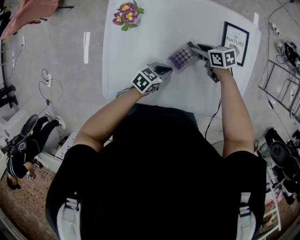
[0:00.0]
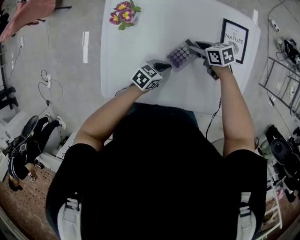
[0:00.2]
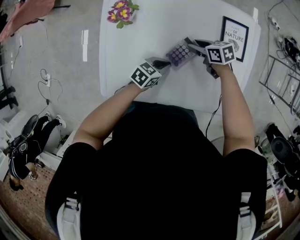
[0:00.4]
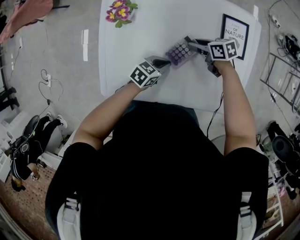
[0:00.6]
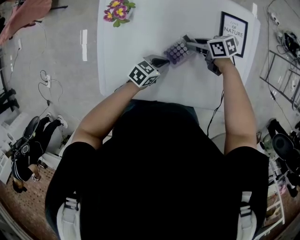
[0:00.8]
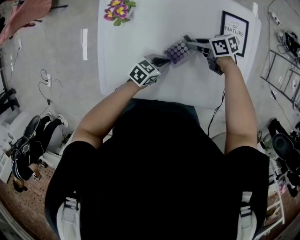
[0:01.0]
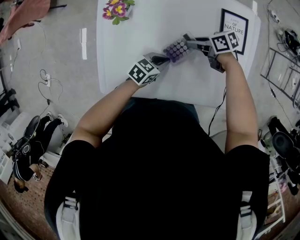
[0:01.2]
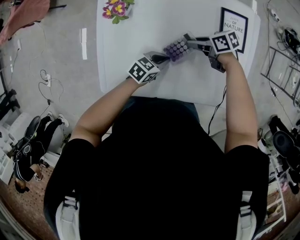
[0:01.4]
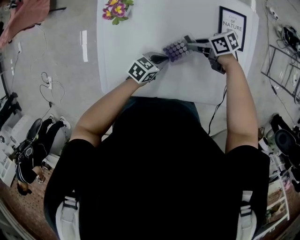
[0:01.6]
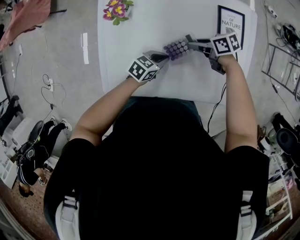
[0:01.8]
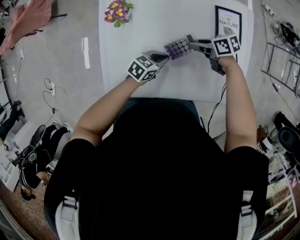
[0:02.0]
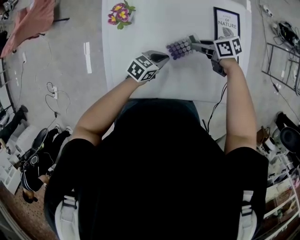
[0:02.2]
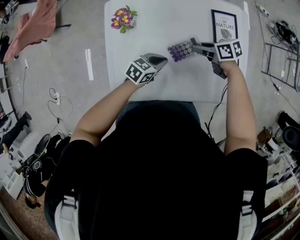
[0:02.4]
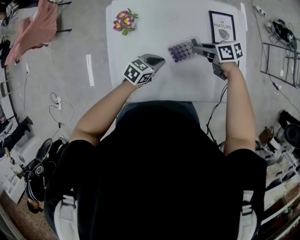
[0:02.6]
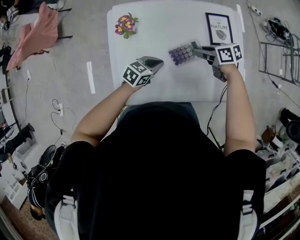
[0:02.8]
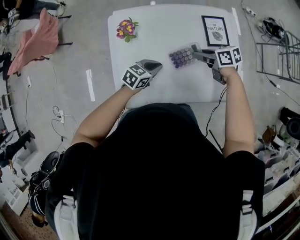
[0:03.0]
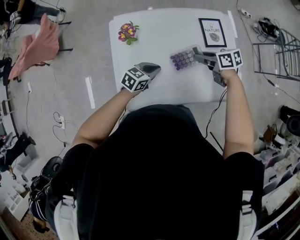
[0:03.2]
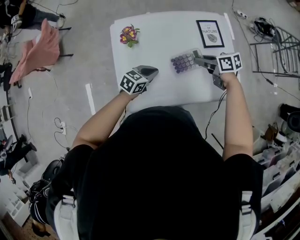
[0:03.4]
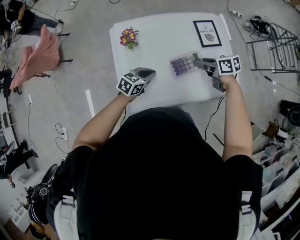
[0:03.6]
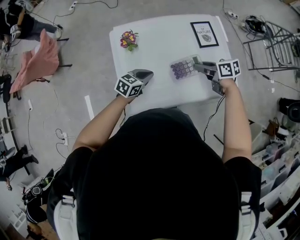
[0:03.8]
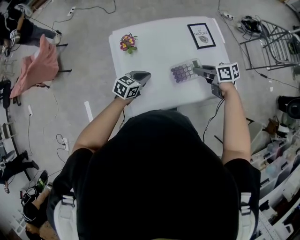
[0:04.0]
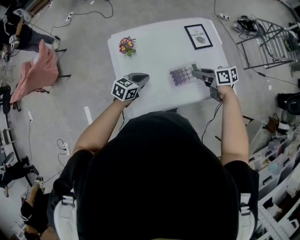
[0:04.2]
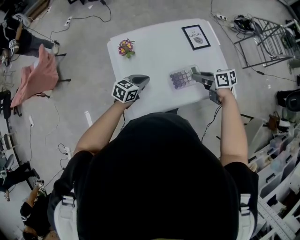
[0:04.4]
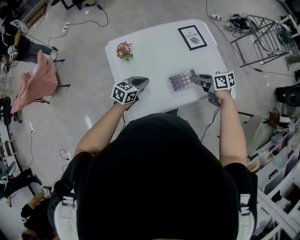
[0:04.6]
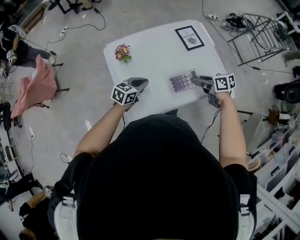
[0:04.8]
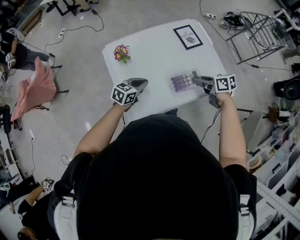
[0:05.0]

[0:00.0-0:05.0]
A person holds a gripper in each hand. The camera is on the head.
0:00.0 to 0:01.6: The right gripper ends up roughly 5 cm from where it was.
0:01.6 to 0:03.4: The grippers both shift upward by about 15 cm. The right gripper turns by roughly 30 degrees.
0:03.4 to 0:05.0: The right gripper changes place by about 15 cm. The left gripper shifts by some 10 cm.

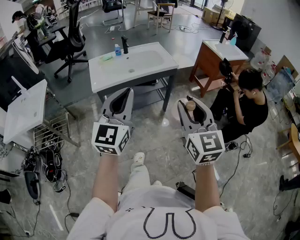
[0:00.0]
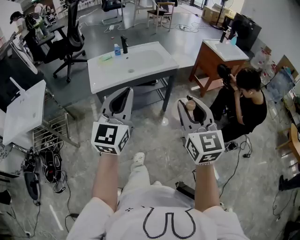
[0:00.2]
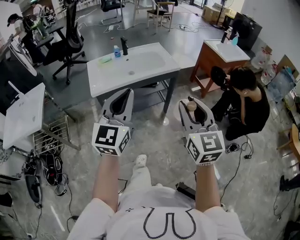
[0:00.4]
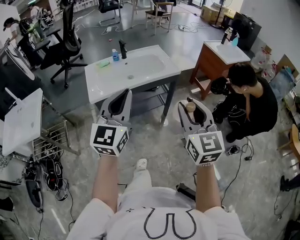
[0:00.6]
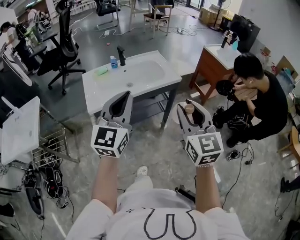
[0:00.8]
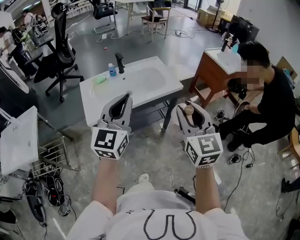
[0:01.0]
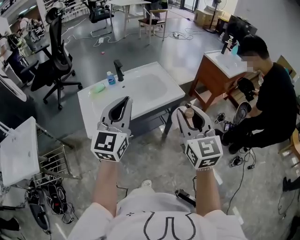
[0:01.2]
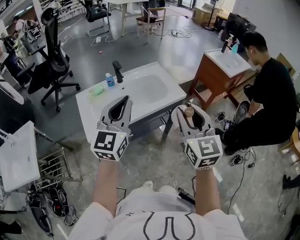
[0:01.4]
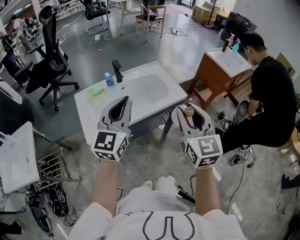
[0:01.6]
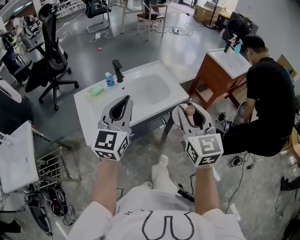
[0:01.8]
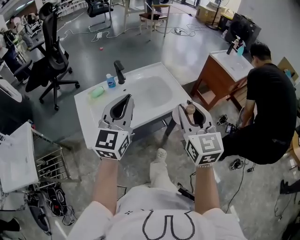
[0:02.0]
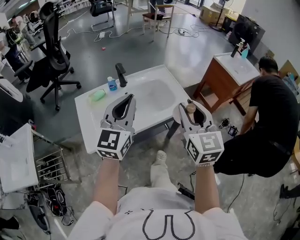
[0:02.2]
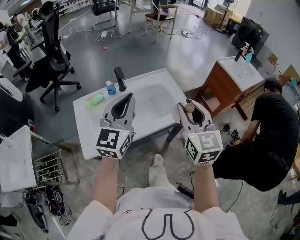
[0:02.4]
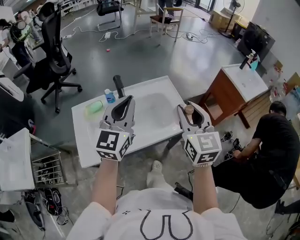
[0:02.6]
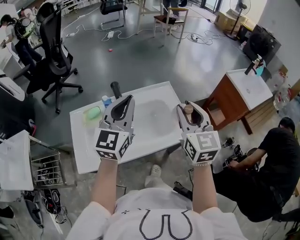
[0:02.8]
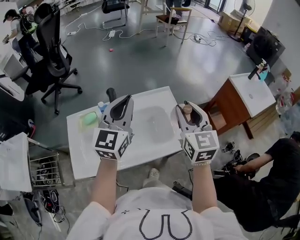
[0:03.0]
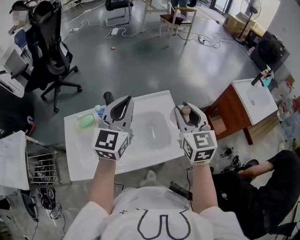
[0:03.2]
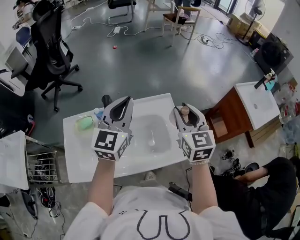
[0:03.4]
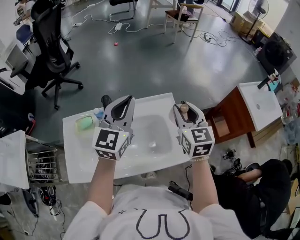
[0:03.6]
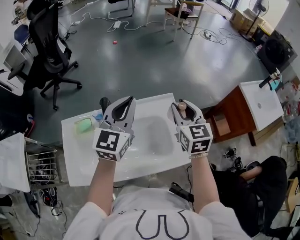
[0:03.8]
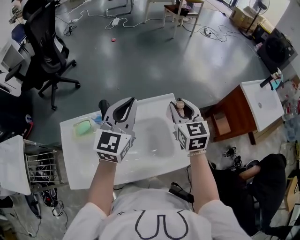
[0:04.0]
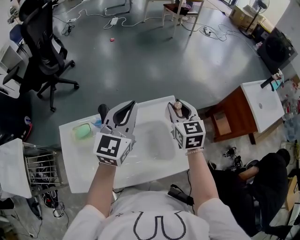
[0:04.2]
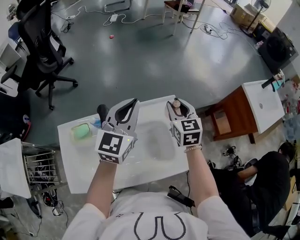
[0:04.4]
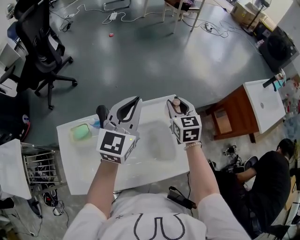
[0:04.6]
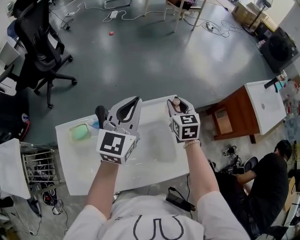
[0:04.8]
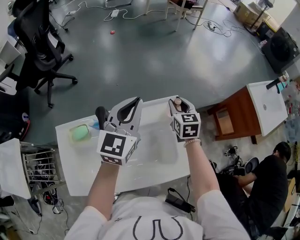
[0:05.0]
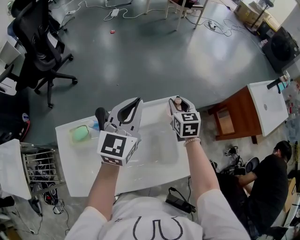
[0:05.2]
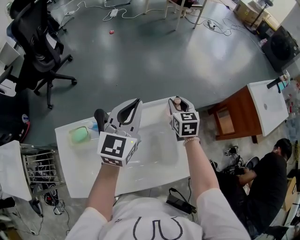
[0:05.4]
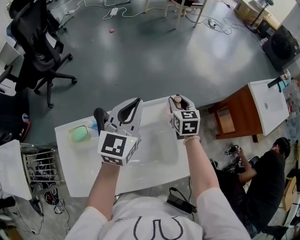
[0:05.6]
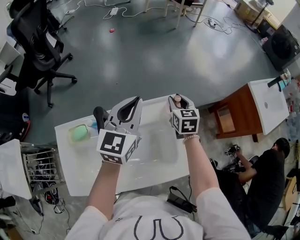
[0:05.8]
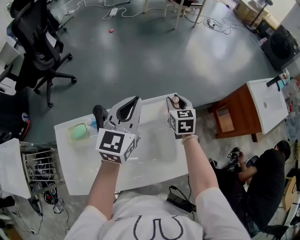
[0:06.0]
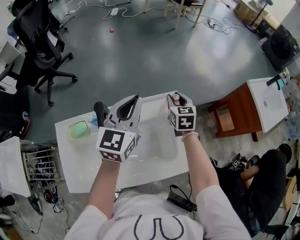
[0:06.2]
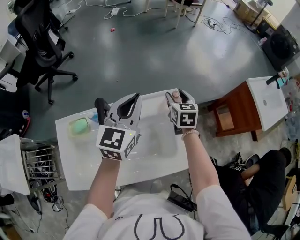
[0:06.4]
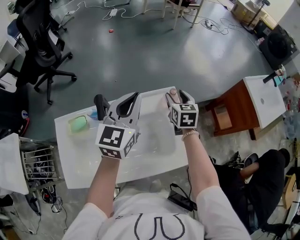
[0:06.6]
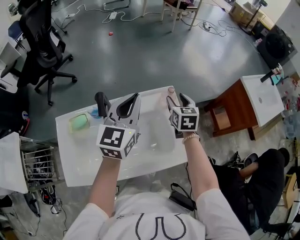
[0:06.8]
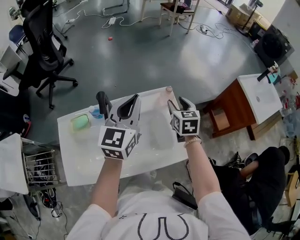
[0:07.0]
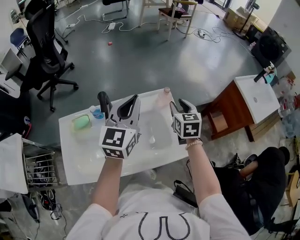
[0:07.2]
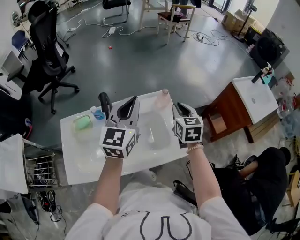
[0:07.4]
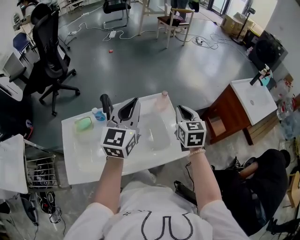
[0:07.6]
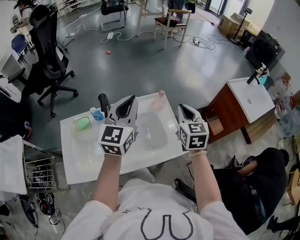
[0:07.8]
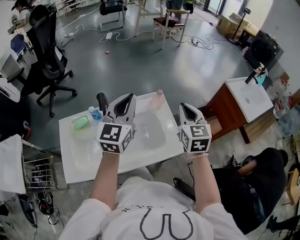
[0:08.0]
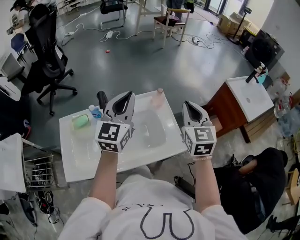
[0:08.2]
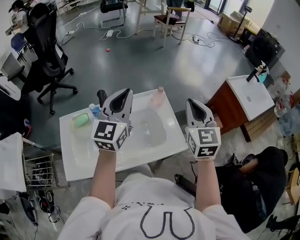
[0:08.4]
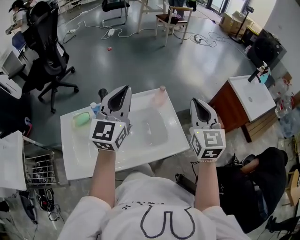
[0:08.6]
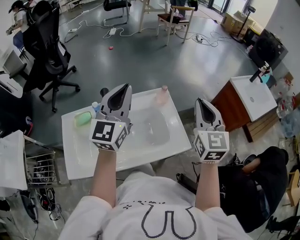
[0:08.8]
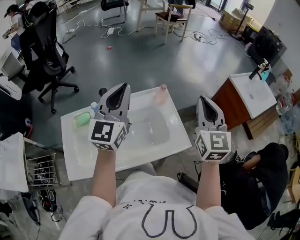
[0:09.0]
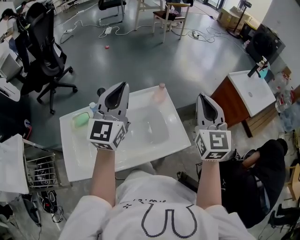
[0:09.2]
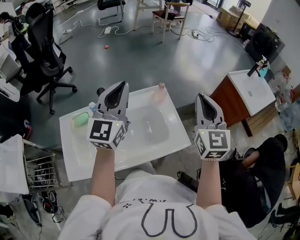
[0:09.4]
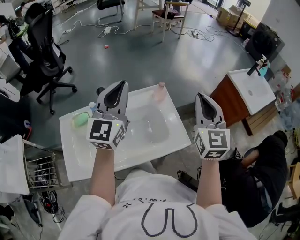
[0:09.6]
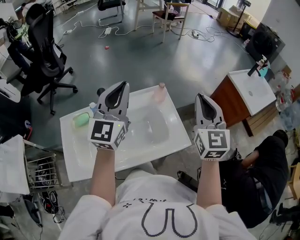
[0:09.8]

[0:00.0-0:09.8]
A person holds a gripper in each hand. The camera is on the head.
0:00.0 to 0:01.4: The two grippers go some 30 cm forward.
0:01.4 to 0:02.8: Both grippers travel together forward, some 30 cm.
0:02.8 to 0:04.2: The right gripper shifts approximately 30 cm forward and downward. Meanwhile the left gripper is displaced forward by about 20 cm.
0:04.2 to 0:05.6: The right gripper goes some 15 cm downward and forward. The left gripper heads forward, covering some 5 cm.
0:05.6 to 0:07.0: The grippers both shift backward by about 10 cm.
0:07.0 to 0:08.4: The right gripper travels upward and backward by about 20 cm, turns by roughly 30 degrees, and closes up; the left gripper heads upward and backward, covering about 10 cm.
0:08.4 to 0:09.8: The grippers make only small movements.

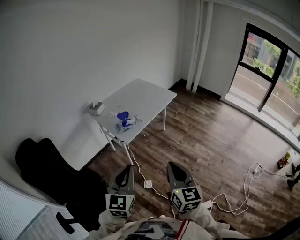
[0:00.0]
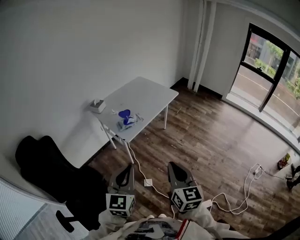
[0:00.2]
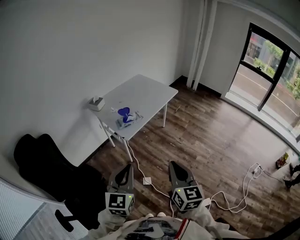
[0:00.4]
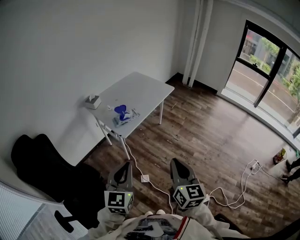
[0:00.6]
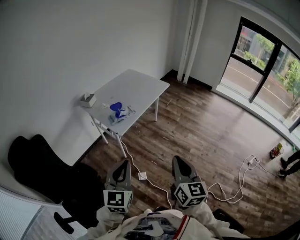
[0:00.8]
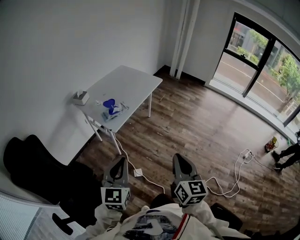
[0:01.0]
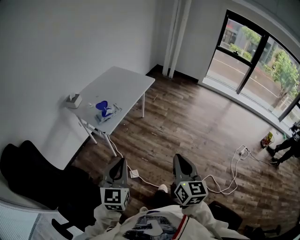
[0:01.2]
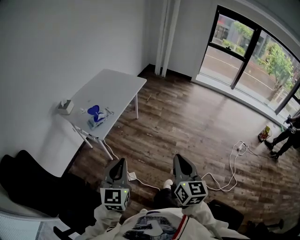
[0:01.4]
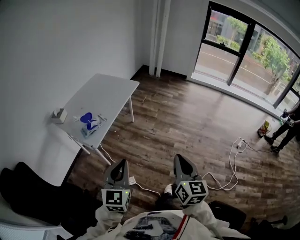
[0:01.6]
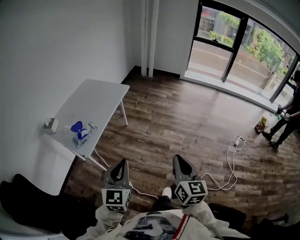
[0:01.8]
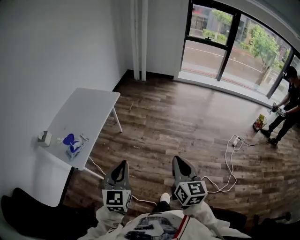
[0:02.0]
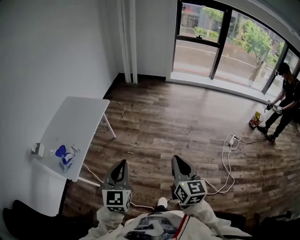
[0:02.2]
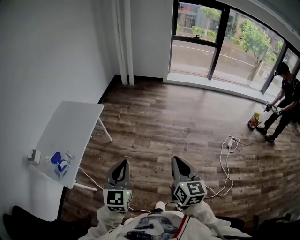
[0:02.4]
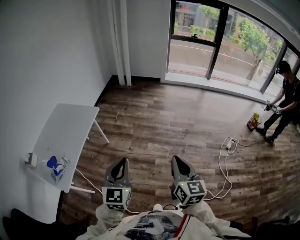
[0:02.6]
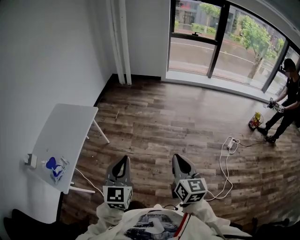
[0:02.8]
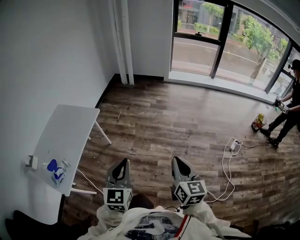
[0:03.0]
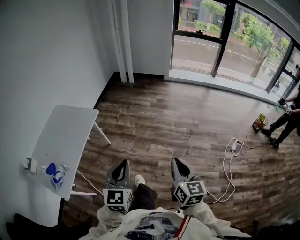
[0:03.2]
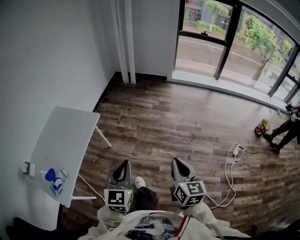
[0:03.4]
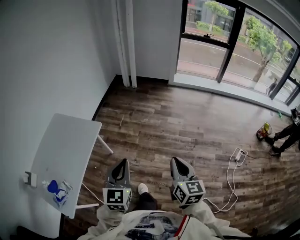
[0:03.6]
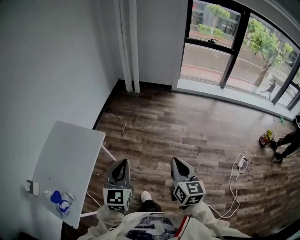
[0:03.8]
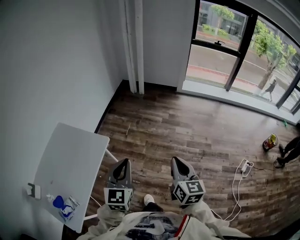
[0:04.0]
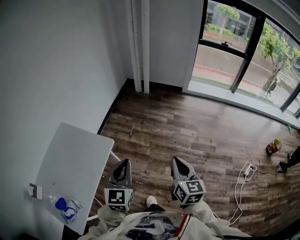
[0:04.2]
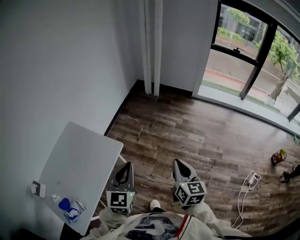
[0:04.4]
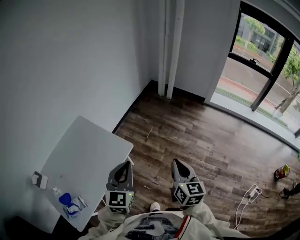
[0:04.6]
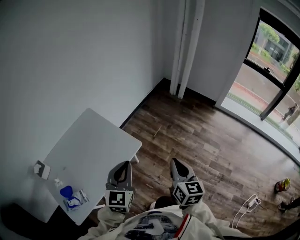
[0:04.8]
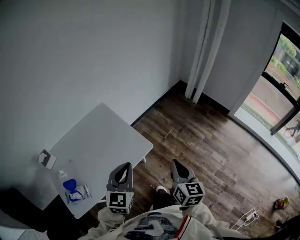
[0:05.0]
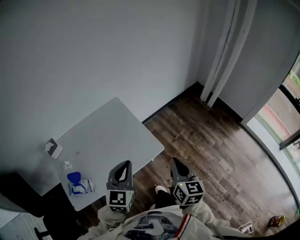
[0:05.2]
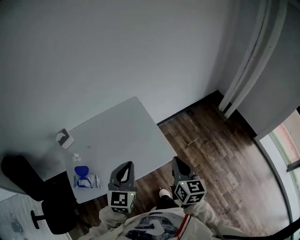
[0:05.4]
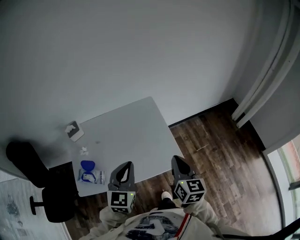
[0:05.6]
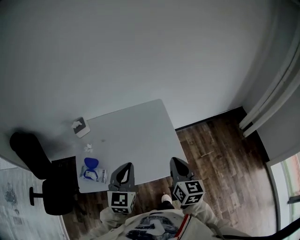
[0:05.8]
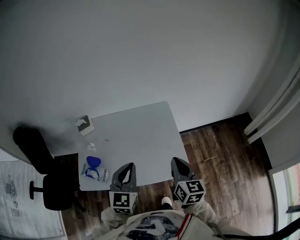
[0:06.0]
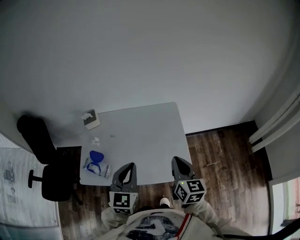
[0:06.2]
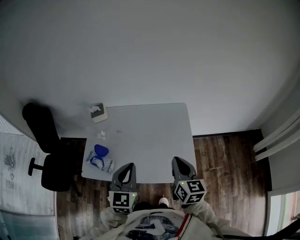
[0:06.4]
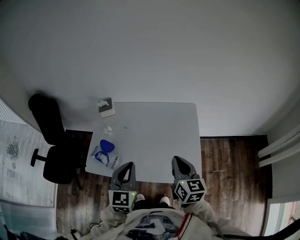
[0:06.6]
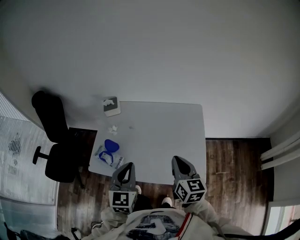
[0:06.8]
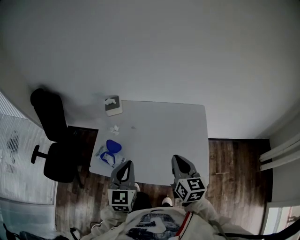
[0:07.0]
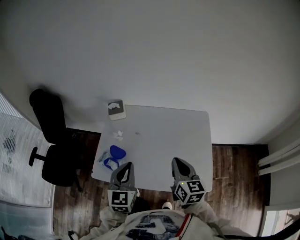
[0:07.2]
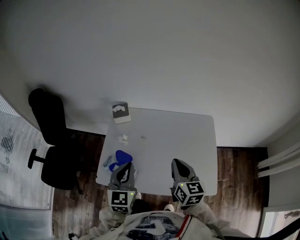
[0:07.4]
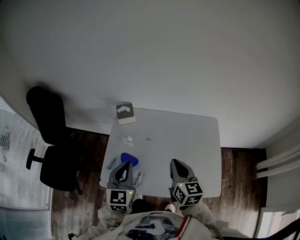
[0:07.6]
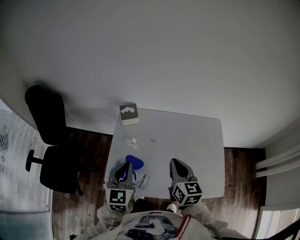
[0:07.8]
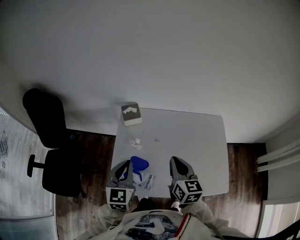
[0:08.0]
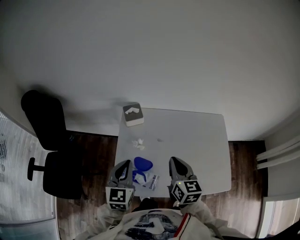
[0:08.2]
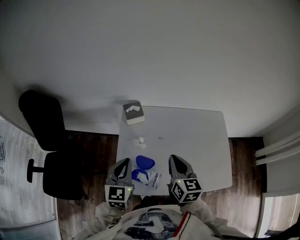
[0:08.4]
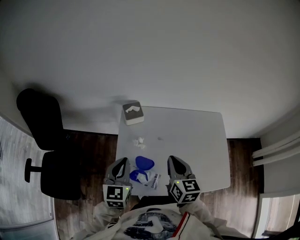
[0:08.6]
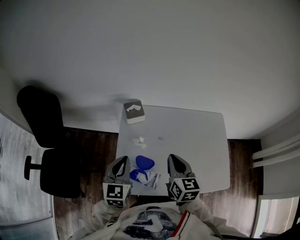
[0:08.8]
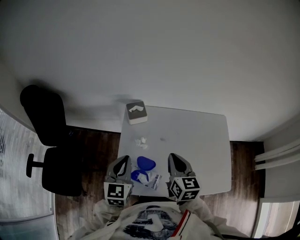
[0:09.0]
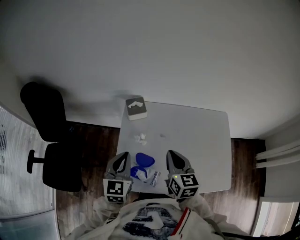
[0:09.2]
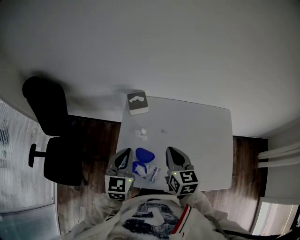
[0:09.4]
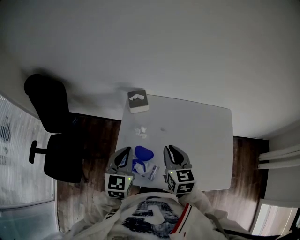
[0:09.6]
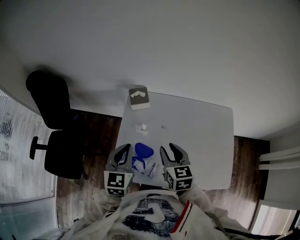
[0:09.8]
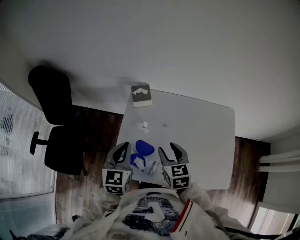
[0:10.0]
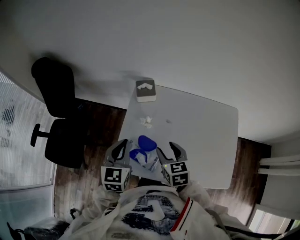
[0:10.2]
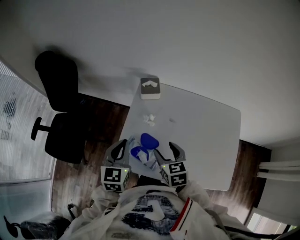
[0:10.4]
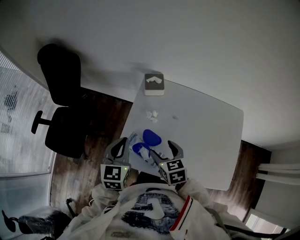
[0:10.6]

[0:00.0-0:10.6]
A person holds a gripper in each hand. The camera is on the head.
0:00.0 to 0:01.6: The right gripper travels to the right by some 15 cm, and turns by some 20 degrees, while the left gripper heads to the right and forward, covering approximately 10 cm.
0:01.6 to 0:03.0: The grippers both shift forward and to the right by some 35 cm.
0:03.0 to 0:04.6: Both grippers are carried forward and to the left, about 50 cm.
0:04.6 to 0:06.0: The right gripper changes place by some 35 cm, and swivels approximately 50 degrees. The left gripper shifts by about 25 cm, and rotates some 50 degrees.
0:06.0 to 0:07.6: The left gripper shifts some 25 cm to the left, and turns by approximately 20 degrees, while the right gripper travels to the left and forward by about 30 cm.
0:07.6 to 0:09.0: The right gripper travels to the left by about 10 cm. The left gripper shifts some 15 cm to the left and forward.
0:09.0 to 0:10.6: The left gripper moves approximately 5 cm. The right gripper moves downward and to the left, approximately 10 cm, rotates about 30 degrees, and opens up.
